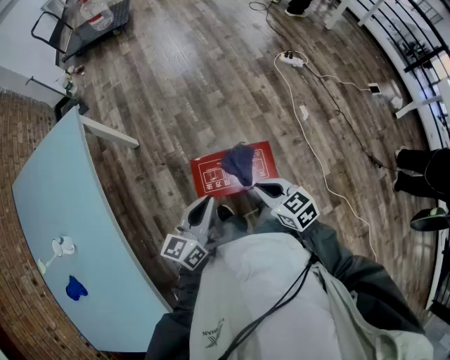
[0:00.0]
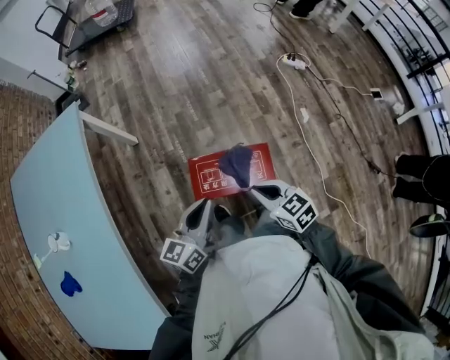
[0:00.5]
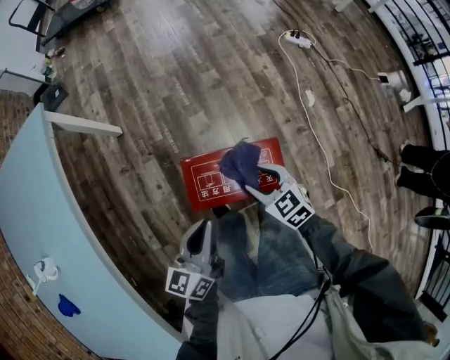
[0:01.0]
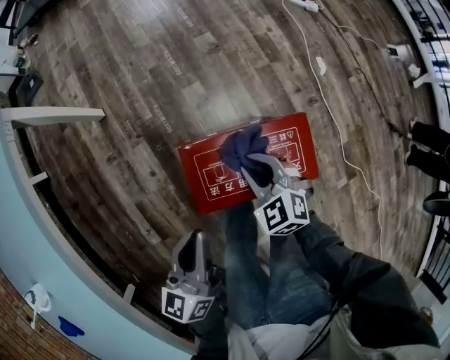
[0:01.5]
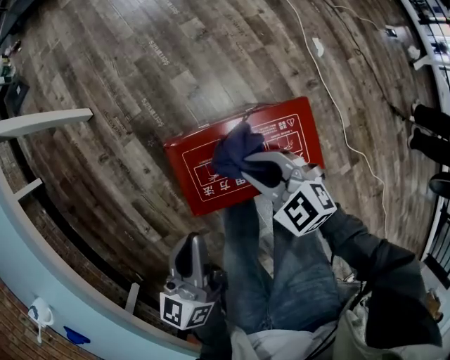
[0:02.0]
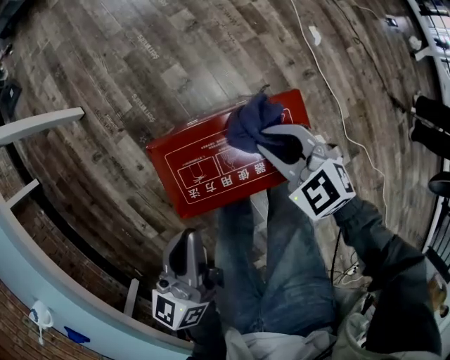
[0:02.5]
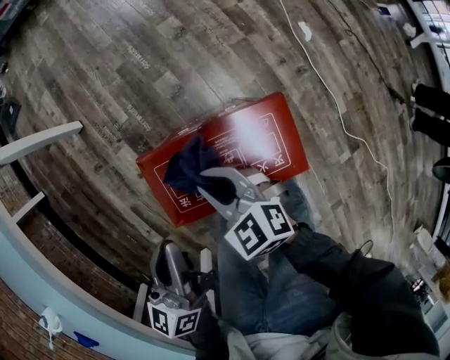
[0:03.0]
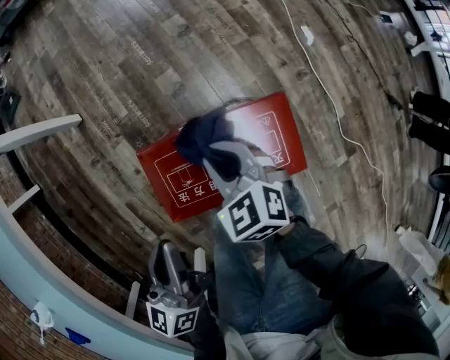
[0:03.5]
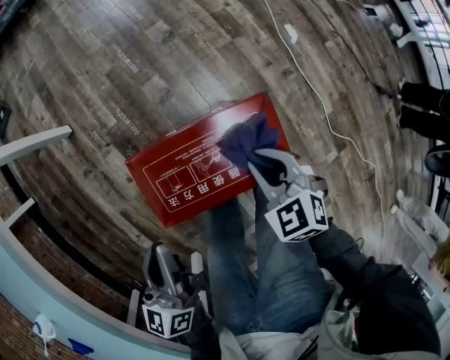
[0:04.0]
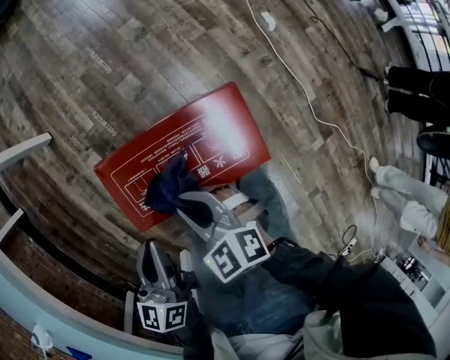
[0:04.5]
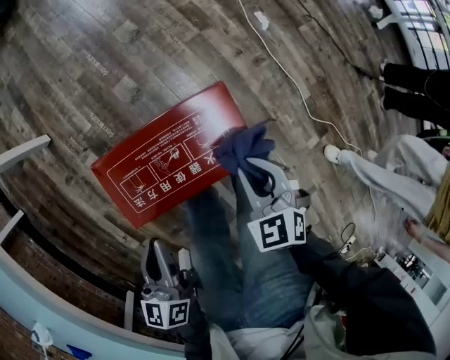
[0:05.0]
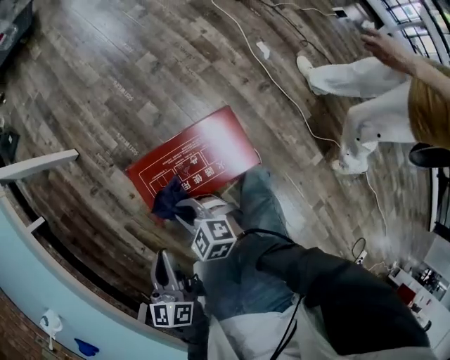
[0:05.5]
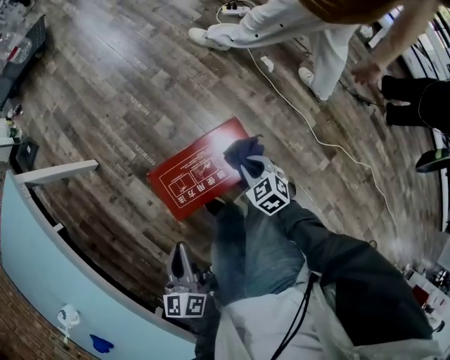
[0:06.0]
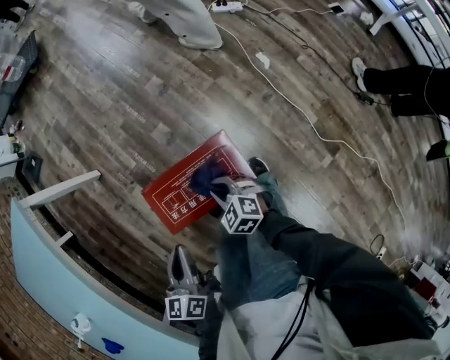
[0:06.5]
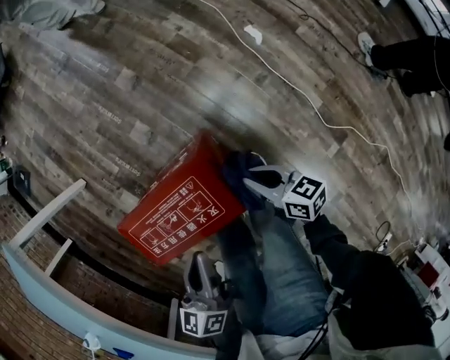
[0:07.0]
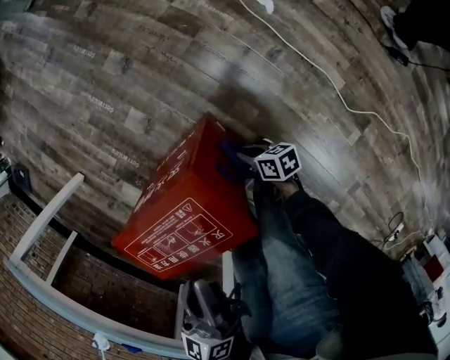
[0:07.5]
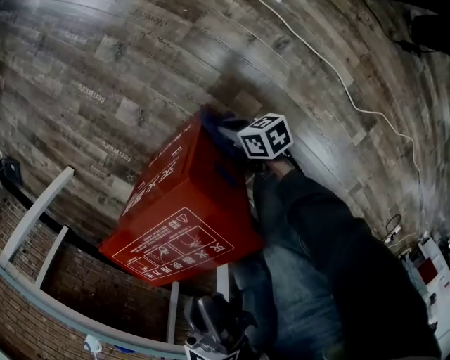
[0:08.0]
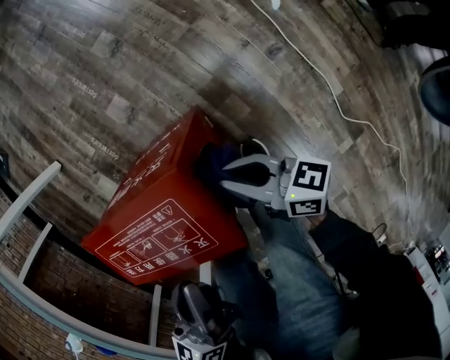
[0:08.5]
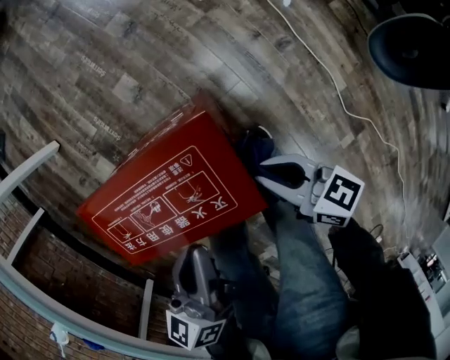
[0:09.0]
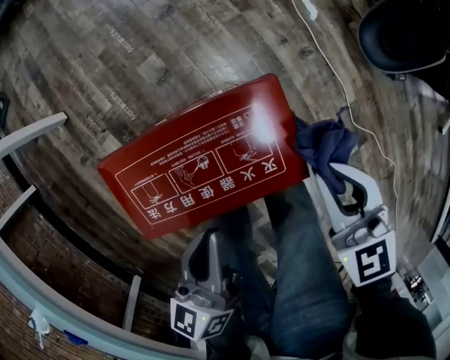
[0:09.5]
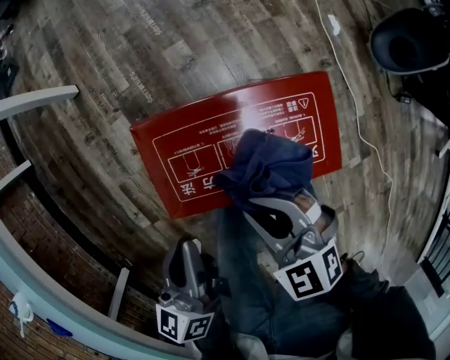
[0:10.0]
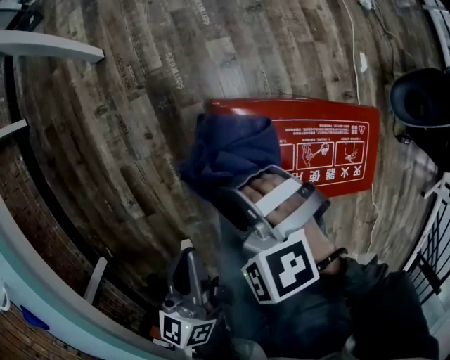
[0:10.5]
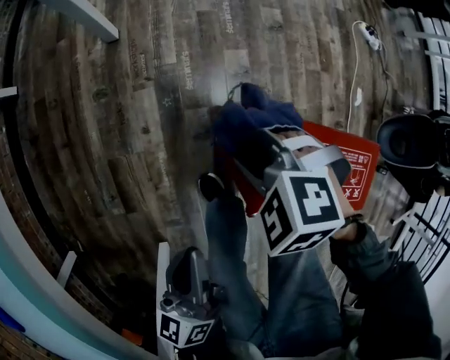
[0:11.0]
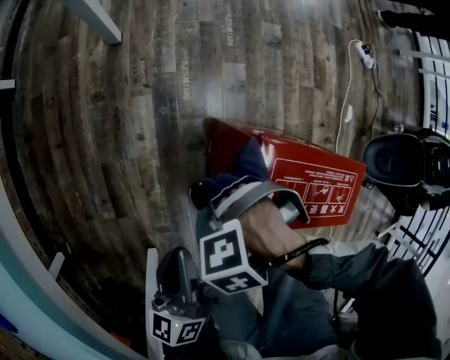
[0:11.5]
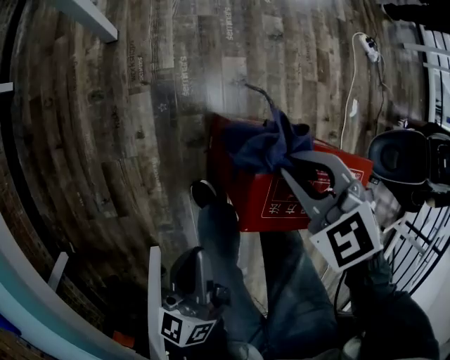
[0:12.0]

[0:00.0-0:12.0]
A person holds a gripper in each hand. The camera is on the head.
0:00.0 to 0:02.0: The right gripper shifts some 20 cm downward, swivels about 30 degrees, and opens, then closes once more; the left gripper heads downward and to the left, covering approximately 20 cm.
0:02.0 to 0:04.0: The right gripper swings left and right, approximately 15 cm each way, with 2 reversals, and changes its angle by approximately 20 degrees.
0:04.0 to 0:06.0: The left gripper moves upward and backward, roughly 10 cm. Meanwhile the right gripper moves left and right over approximately 25 cm, changing direction 3 times.
0:06.0 to 0:08.0: The right gripper heads downward, covering approximately 30 cm, and rolls clockwise, seen from behind, by some 50 degrees. The left gripper heads to the right and downward, covering approximately 25 cm.
0:08.0 to 0:10.0: The left gripper goes approximately 25 cm to the left, while the right gripper heads upward and to the left, covering about 40 cm, and rolls counterclockwise, seen from behind, by about 80 degrees.
0:10.0 to 0:12.0: The right gripper changes place by some 20 cm, and changes its angle by about 20 degrees. Meanwhile the left gripper ends up some 15 cm from where it was, and turns by approximately 20 degrees.

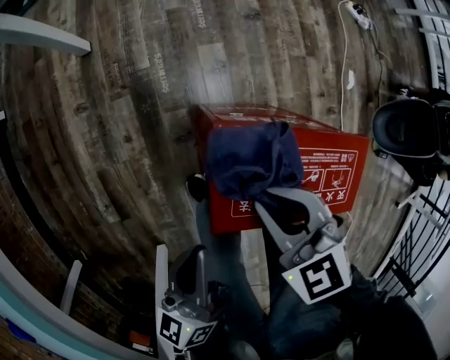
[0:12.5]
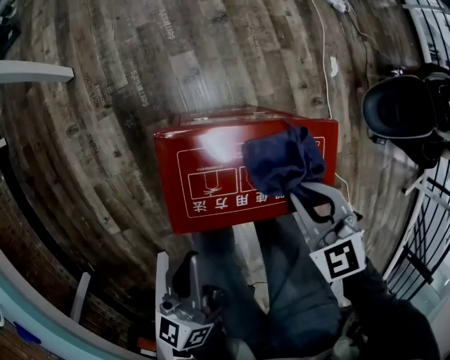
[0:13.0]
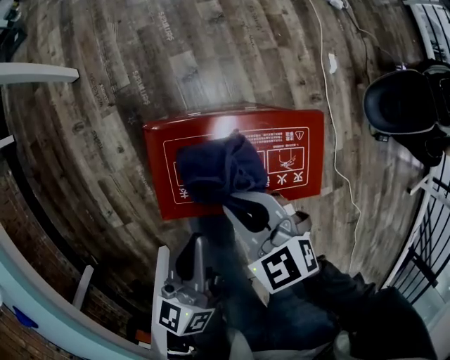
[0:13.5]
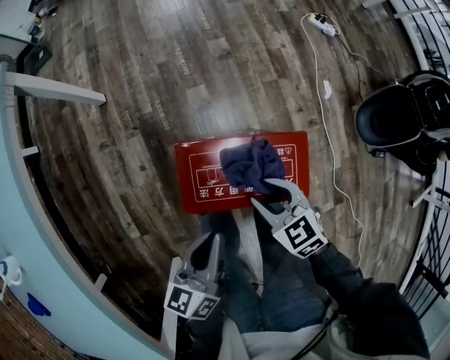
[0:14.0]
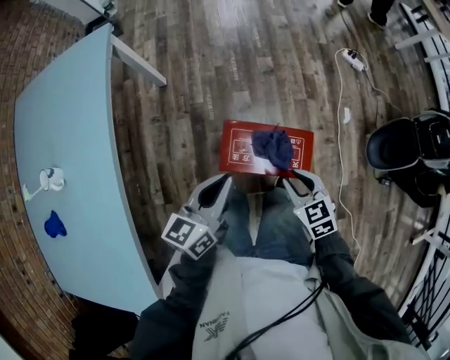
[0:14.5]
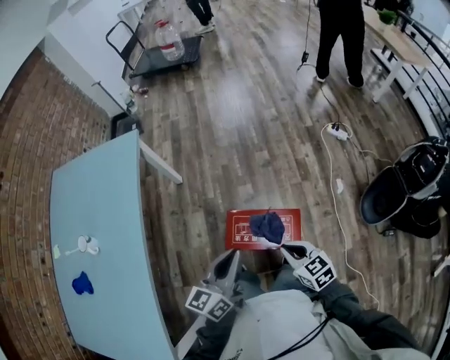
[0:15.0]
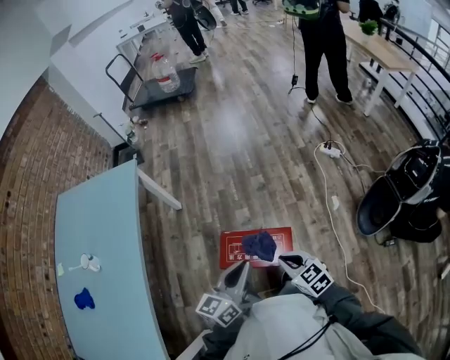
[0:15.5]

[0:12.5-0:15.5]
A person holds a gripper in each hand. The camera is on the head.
0:12.5 to 0:14.0: The right gripper moves left and right over about 15 cm, changing direction 2 times, and opens its fingers. Meanwhile the left gripper shifts approximately 15 cm to the right and upward.
0:14.0 to 0:15.5: Both grippers travel together upward, about 25 cm. The right gripper closes its fingers.

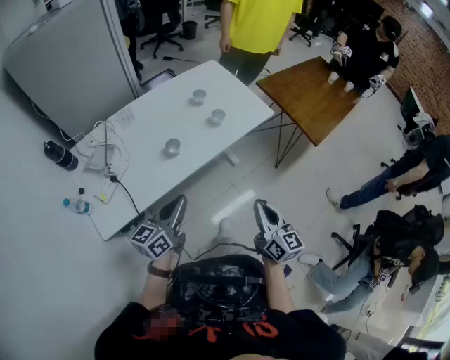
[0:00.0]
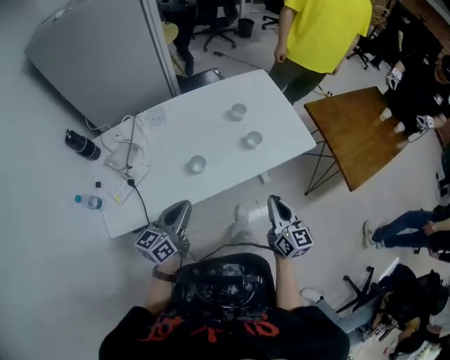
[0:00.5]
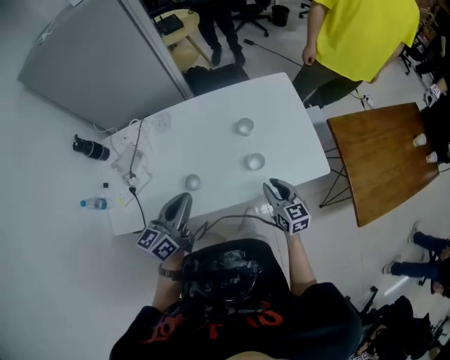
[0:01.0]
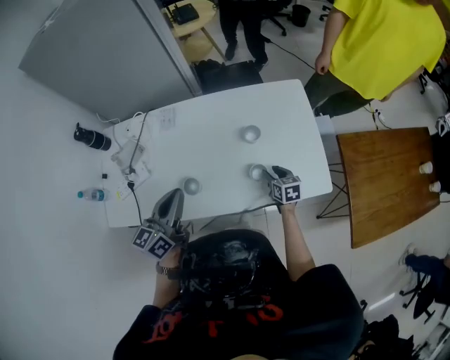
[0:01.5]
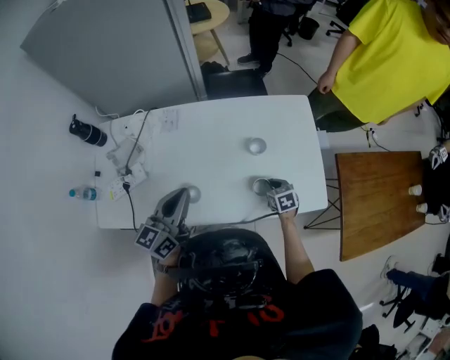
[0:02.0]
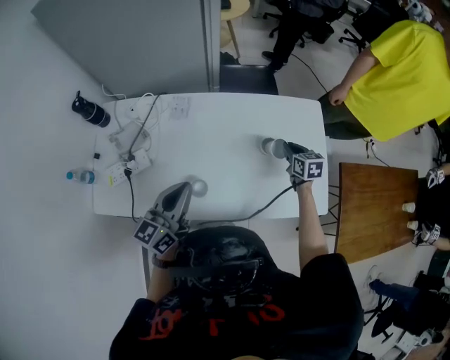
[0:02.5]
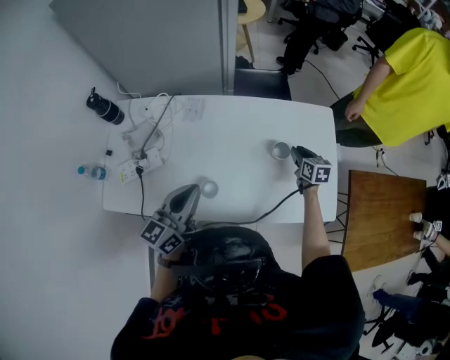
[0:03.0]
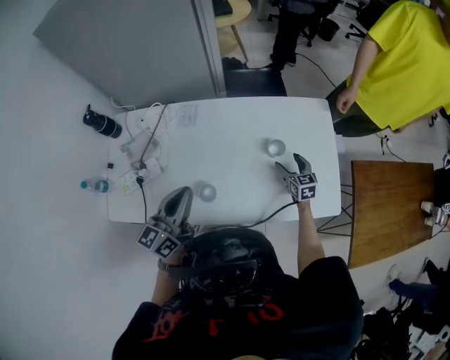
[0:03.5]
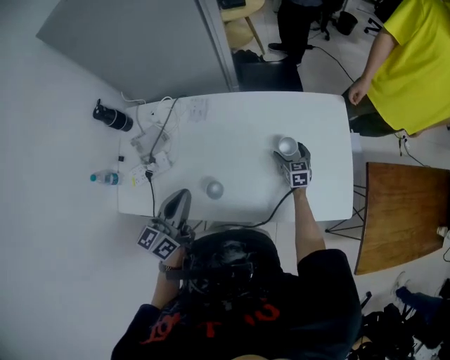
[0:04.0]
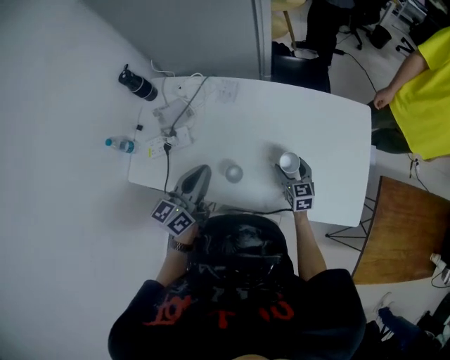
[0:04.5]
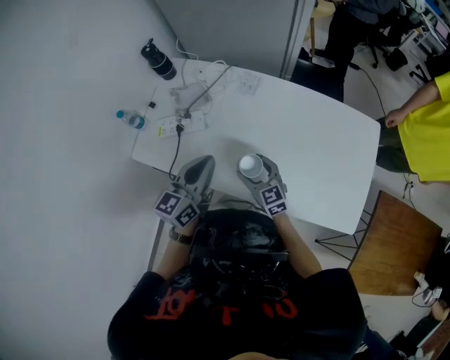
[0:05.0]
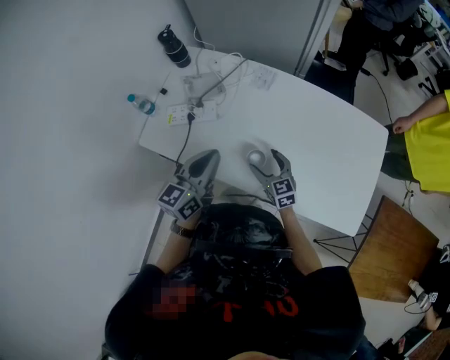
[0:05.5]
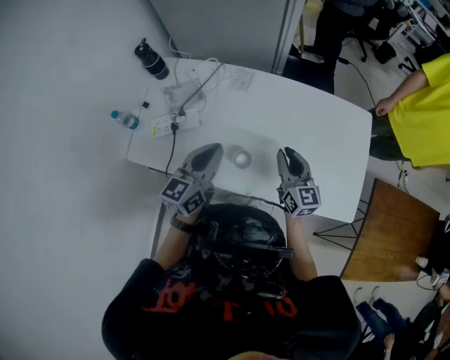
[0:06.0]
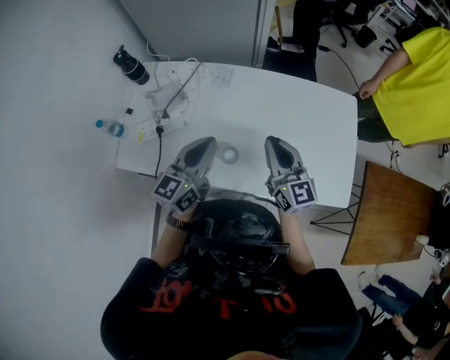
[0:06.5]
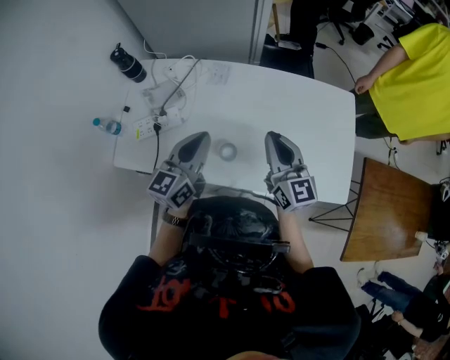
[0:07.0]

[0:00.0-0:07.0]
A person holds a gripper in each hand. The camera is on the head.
0:00.0 to 0:02.0: The left gripper shifts by roughly 30 cm, and swivels roughly 30 degrees. Meanwhile the right gripper moves roughly 60 cm, angles its fingers downward, by about 50 degrees, and opens and closes again.
0:02.0 to 0:03.5: The right gripper moves forward, roughly 10 cm, swivels roughly 20 degrees, and opens.
0:03.5 to 0:05.0: The left gripper shifts by roughly 10 cm. Meanwhile the right gripper shifts by approximately 35 cm, and turns by roughly 40 degrees.
0:05.0 to 0:07.0: The right gripper goes roughly 20 cm upward and to the right, changes its angle by approximately 30 degrees, and closes its fingers.

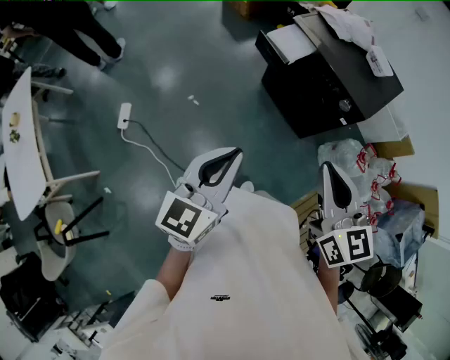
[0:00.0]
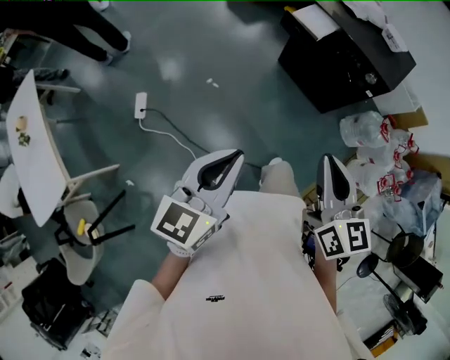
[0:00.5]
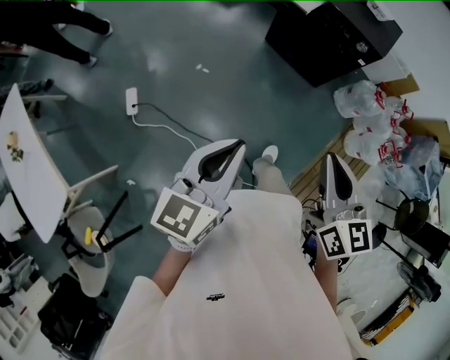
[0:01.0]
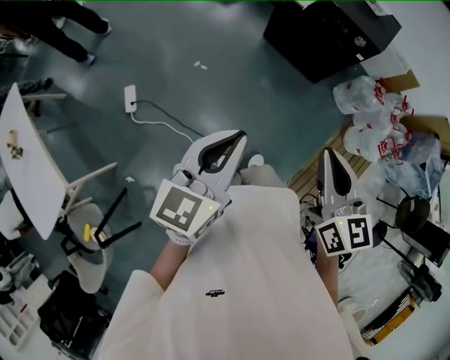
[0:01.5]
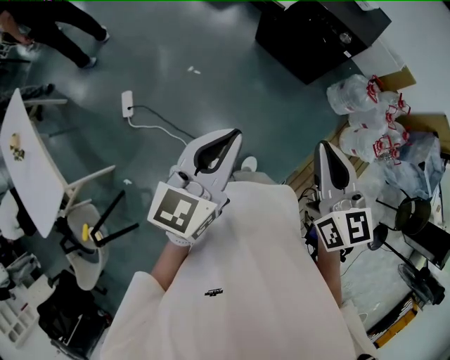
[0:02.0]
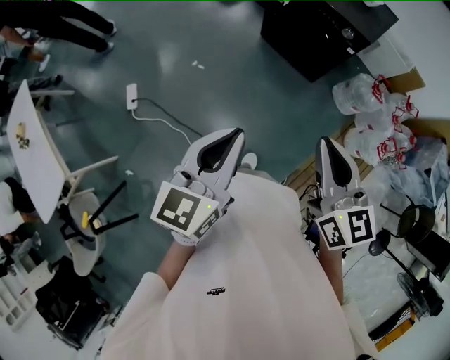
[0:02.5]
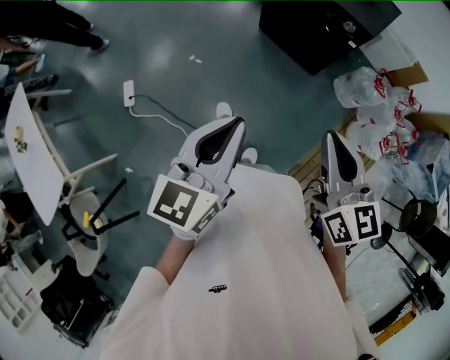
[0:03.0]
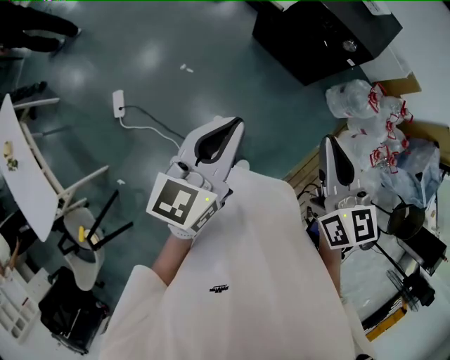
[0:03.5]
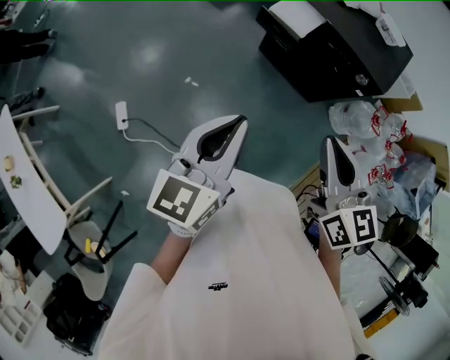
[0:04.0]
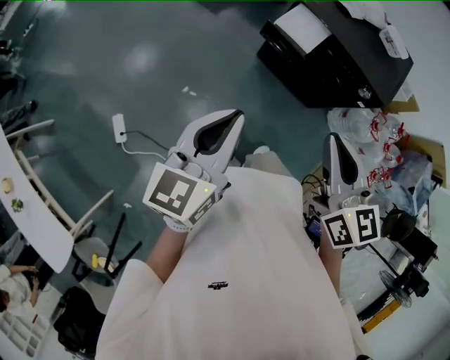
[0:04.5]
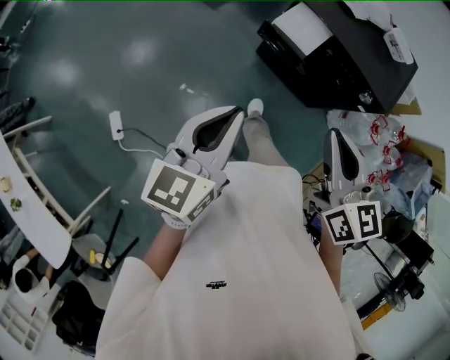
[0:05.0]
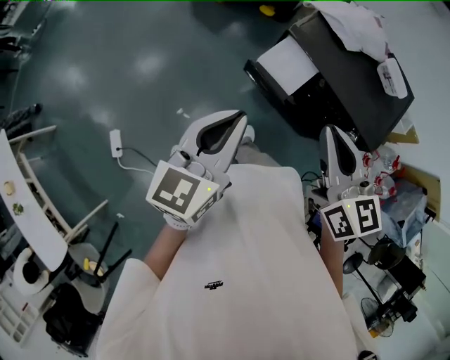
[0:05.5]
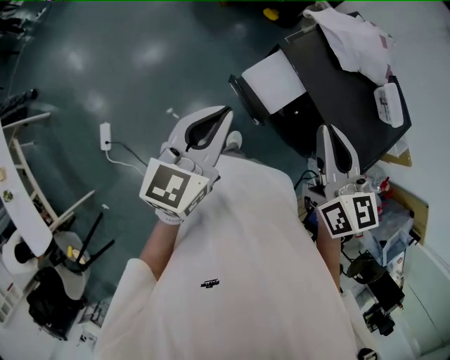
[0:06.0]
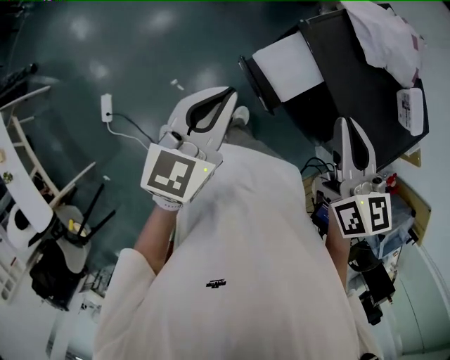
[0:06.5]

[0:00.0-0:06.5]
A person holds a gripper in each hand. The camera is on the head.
0:00.0 to 0:02.0: The left gripper travels backward and to the left by some 20 cm. The right gripper shifts approximately 20 cm backward.
0:02.0 to 0:04.5: Both grippers move forward, approximately 35 cm.
0:04.5 to 0:06.5: Both grippers move forward, about 30 cm.
